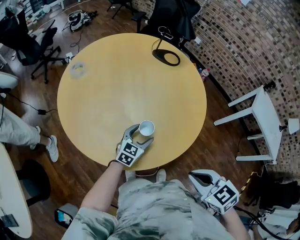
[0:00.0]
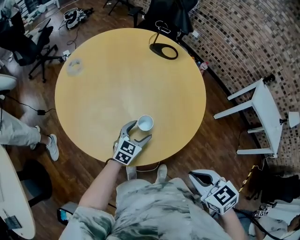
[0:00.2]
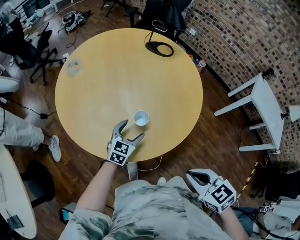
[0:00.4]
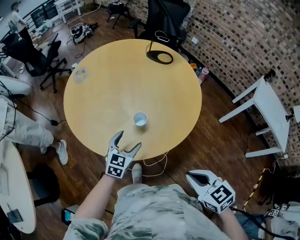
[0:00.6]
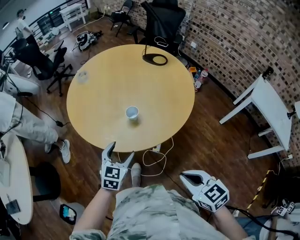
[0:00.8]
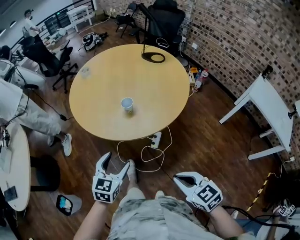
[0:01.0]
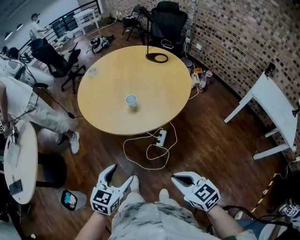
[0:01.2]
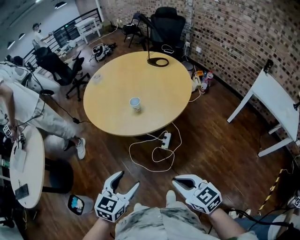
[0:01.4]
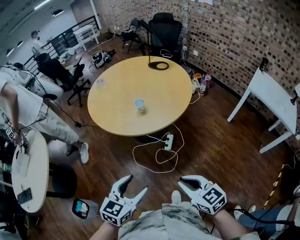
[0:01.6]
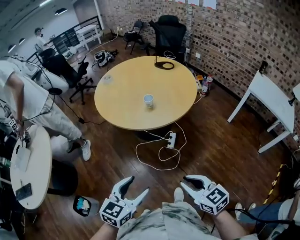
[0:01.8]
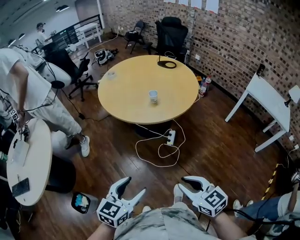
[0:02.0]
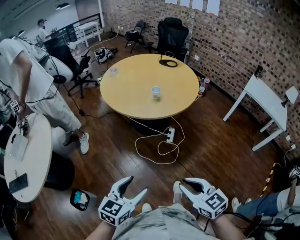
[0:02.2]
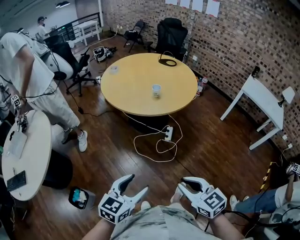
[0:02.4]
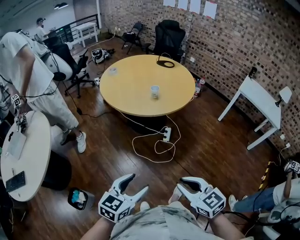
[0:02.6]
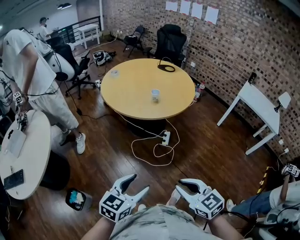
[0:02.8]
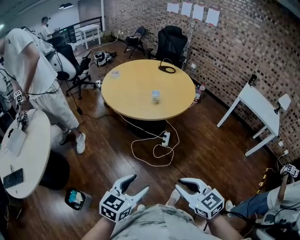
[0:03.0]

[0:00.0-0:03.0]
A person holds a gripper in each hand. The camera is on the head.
0:00.0 to 0:01.6: The left gripper goes approximately 60 cm backward and upward. Meanwhile the right gripper shifts about 35 cm backward, and rotates approximately 20 degrees.
0:01.6 to 0:03.0: The left gripper goes approximately 25 cm backward and upward. Meanwhile the right gripper shifts approximately 30 cm backward, upward and to the left.

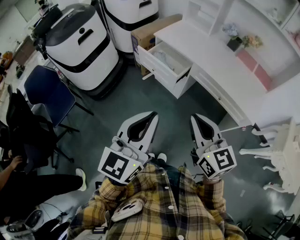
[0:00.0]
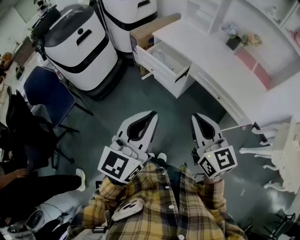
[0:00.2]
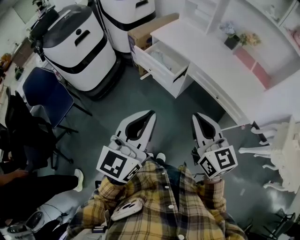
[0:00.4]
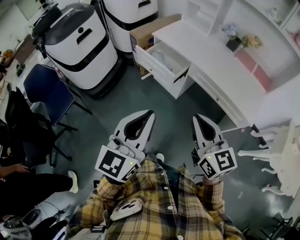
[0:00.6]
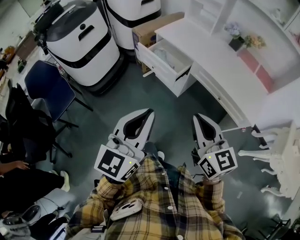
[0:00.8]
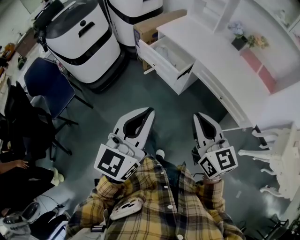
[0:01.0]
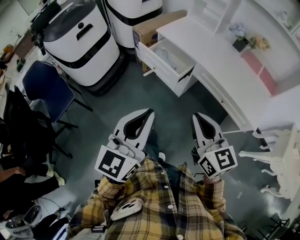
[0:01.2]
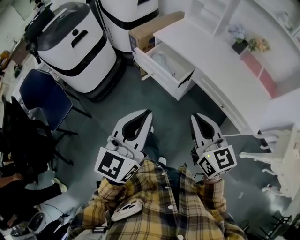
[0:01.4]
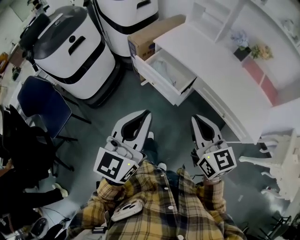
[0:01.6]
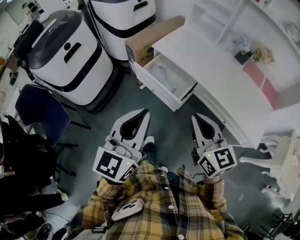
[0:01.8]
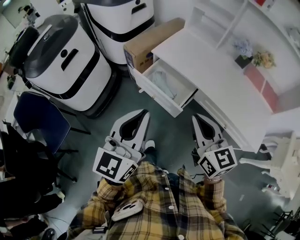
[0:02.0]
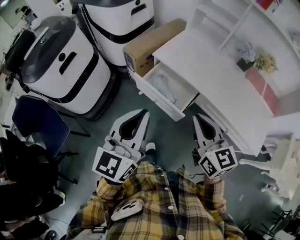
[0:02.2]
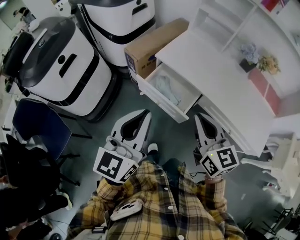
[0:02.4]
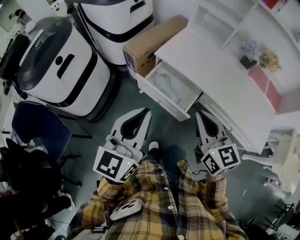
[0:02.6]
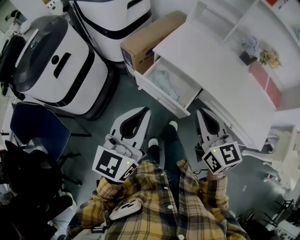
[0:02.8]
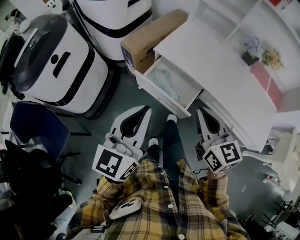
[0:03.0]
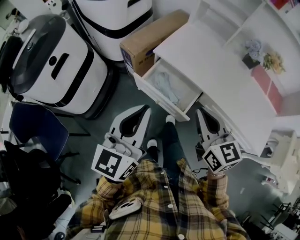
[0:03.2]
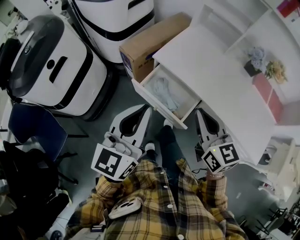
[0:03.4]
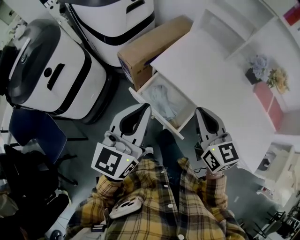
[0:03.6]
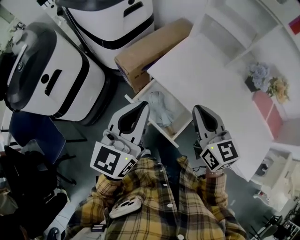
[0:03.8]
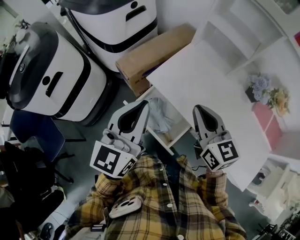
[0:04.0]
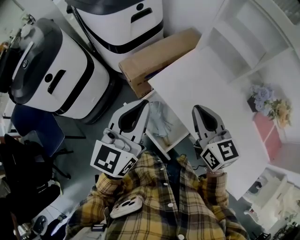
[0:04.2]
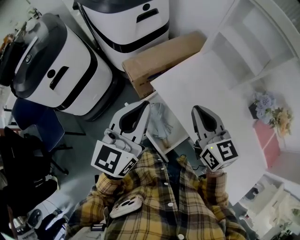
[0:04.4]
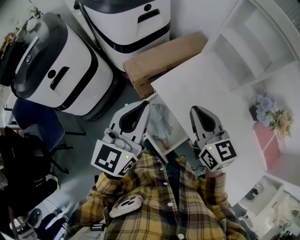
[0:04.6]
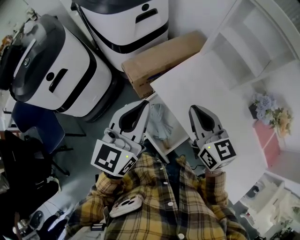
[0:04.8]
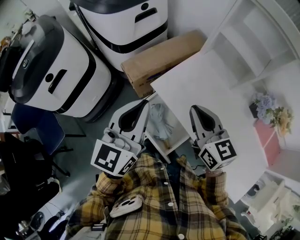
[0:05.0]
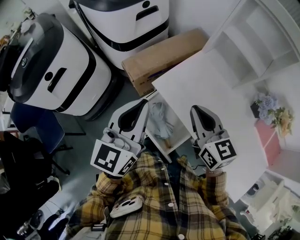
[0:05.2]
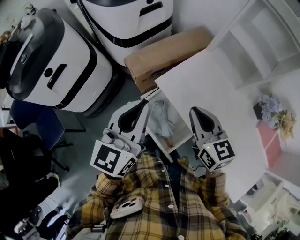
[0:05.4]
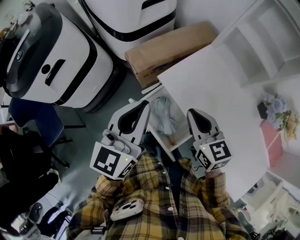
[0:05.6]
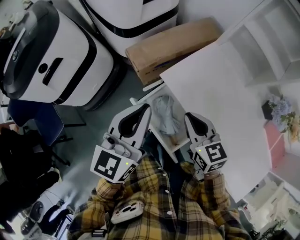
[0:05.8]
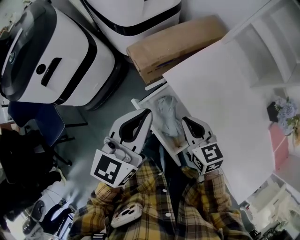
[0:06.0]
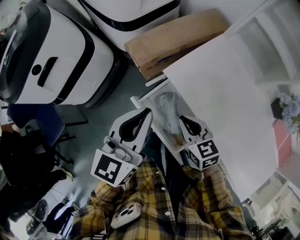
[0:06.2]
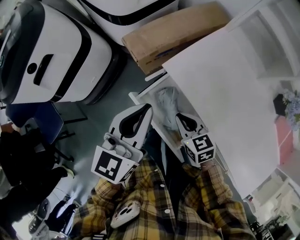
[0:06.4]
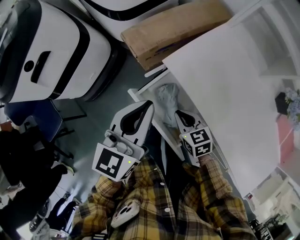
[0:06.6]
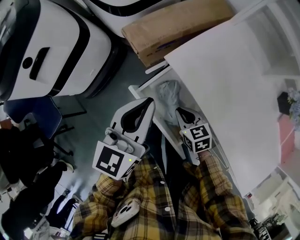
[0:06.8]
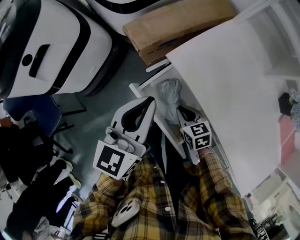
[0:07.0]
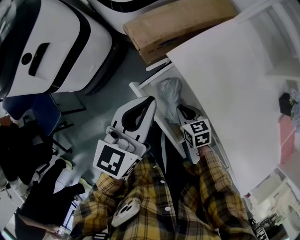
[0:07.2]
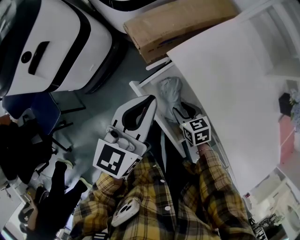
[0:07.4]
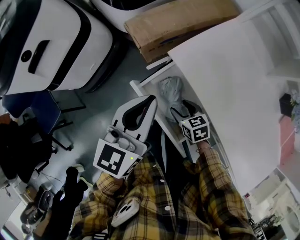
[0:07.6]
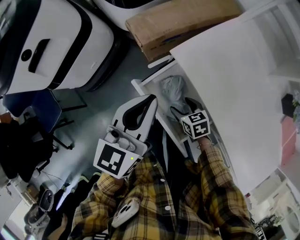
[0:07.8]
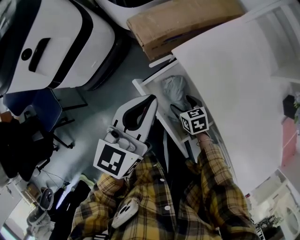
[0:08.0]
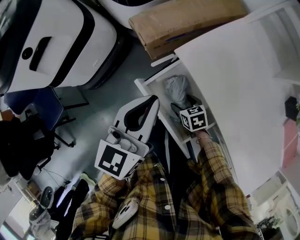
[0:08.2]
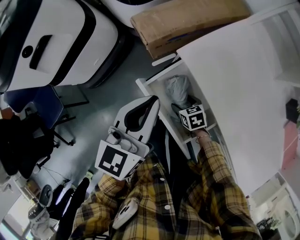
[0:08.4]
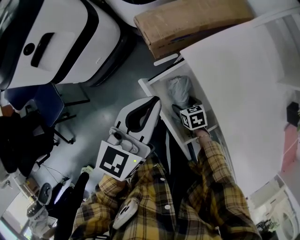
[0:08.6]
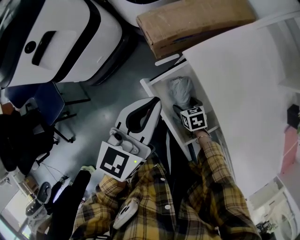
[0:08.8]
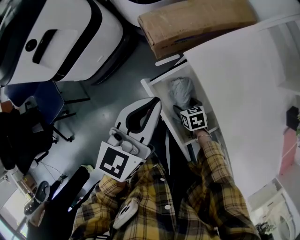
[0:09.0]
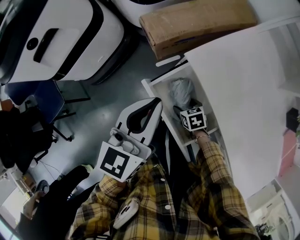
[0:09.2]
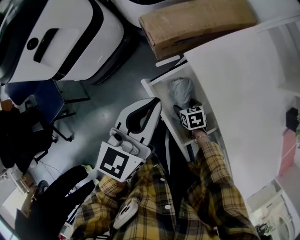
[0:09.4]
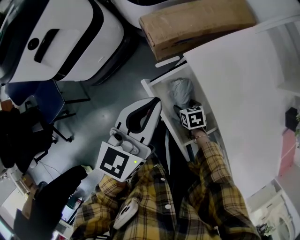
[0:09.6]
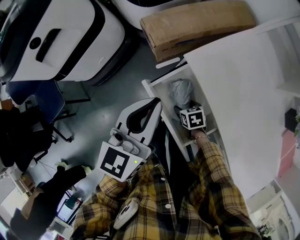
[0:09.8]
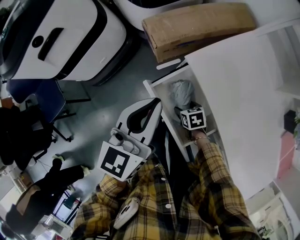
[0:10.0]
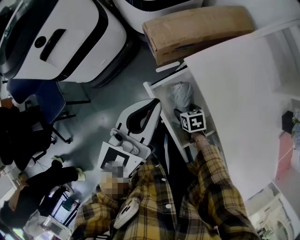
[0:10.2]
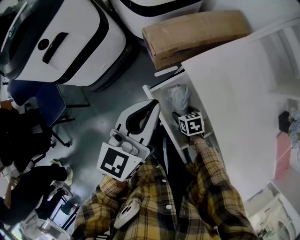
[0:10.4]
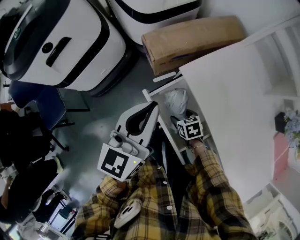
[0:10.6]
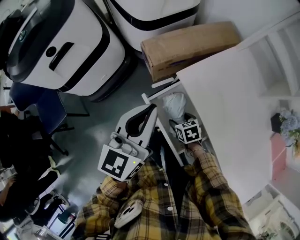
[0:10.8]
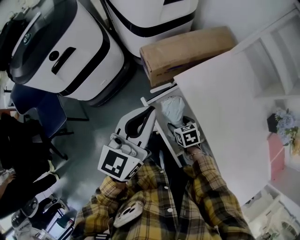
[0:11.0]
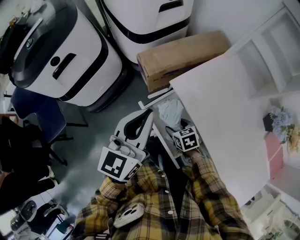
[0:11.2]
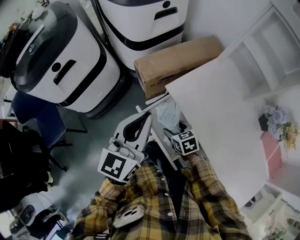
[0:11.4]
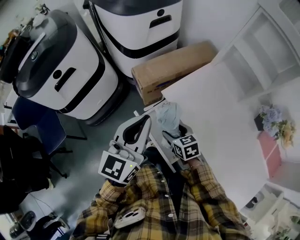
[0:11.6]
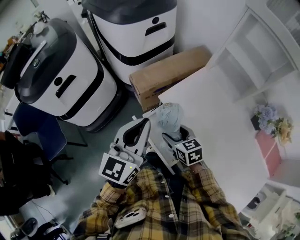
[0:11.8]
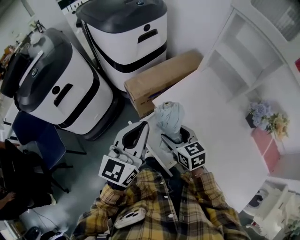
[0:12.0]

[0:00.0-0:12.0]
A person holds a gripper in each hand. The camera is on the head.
0:00.0 to 0:01.6: The two grippers go approximately 15 cm forward.
0:01.6 to 0:03.0: The two grippers go some 20 cm forward.
0:03.0 to 0:04.4: Both grippers travel together forward, some 25 cm.
0:04.4 to 0:06.0: The left gripper is displaced downward by some 10 cm. Meanwhile the right gripper is displaced downward and to the left by approximately 20 cm, and changes its angle by some 20 degrees.
0:06.0 to 0:07.6: The left gripper heads downward, covering roughly 5 cm, while the right gripper travels downward by approximately 20 cm, turns by roughly 20 degrees, and opens.
0:07.6 to 0:09.0: The right gripper moves downward, some 10 cm.
0:09.0 to 0:10.4: The grippers move only a little.
0:10.4 to 0:12.0: The left gripper heads upward, covering roughly 10 cm. Meanwhile the right gripper heads upward, covering about 30 cm, and tips its fingers upward by approximately 30 degrees.

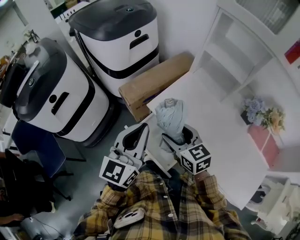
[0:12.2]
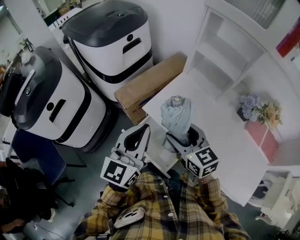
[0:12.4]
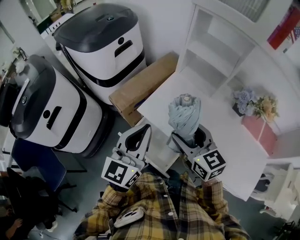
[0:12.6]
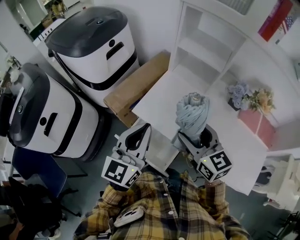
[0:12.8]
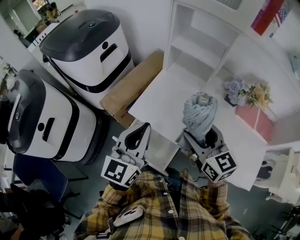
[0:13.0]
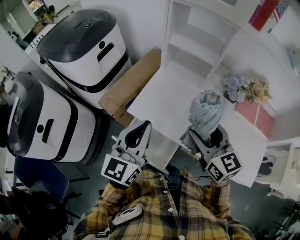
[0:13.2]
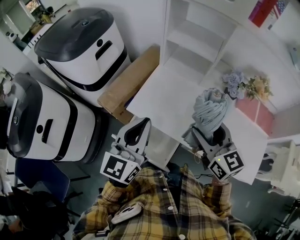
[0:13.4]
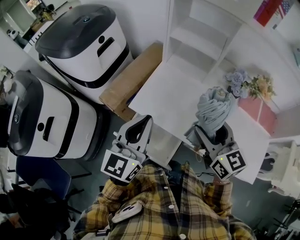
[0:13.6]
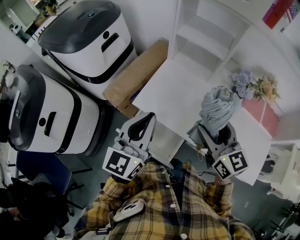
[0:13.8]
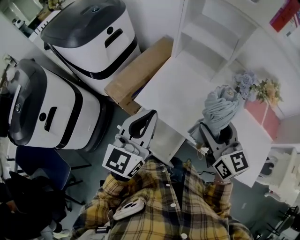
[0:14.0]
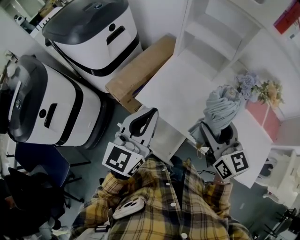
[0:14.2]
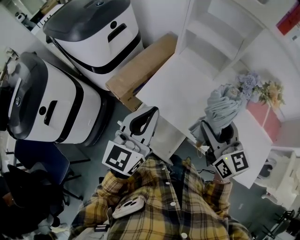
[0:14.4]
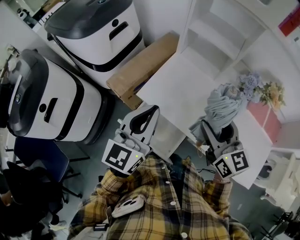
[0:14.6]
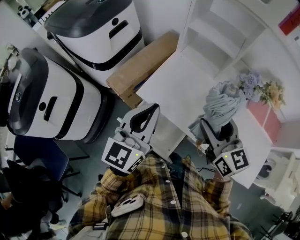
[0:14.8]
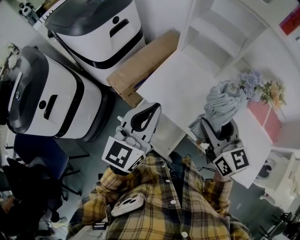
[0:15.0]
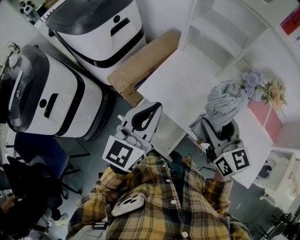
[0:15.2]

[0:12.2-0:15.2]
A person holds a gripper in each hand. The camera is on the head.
0:12.2 to 0:13.8: The left gripper travels to the right by roughly 10 cm. The right gripper travels to the right and upward by about 20 cm, and changes its angle by roughly 30 degrees.
0:13.8 to 0:15.2: Both grippers stay about where they are.

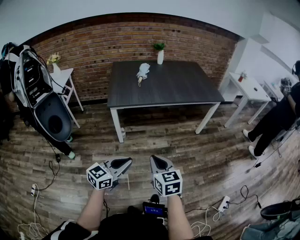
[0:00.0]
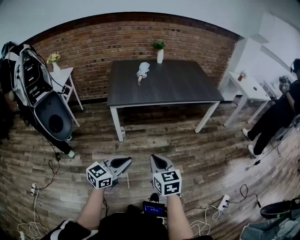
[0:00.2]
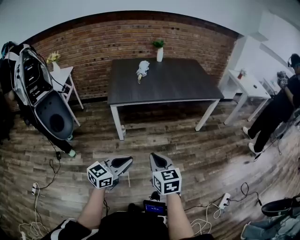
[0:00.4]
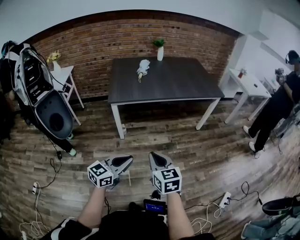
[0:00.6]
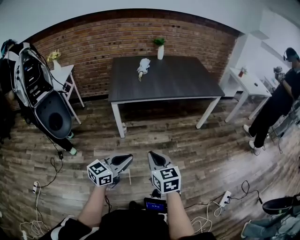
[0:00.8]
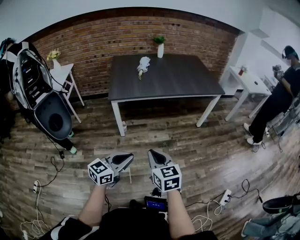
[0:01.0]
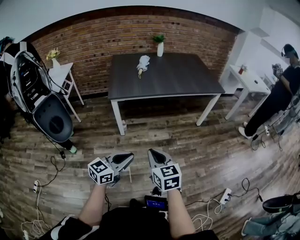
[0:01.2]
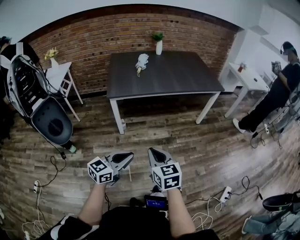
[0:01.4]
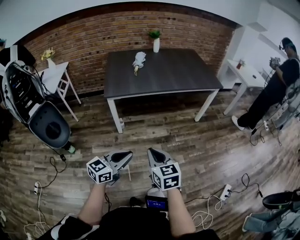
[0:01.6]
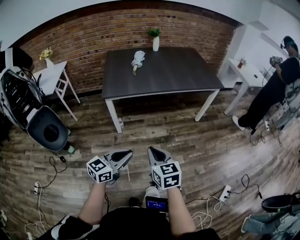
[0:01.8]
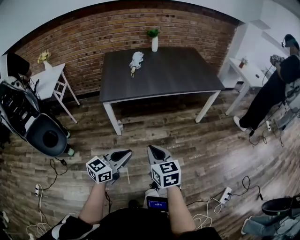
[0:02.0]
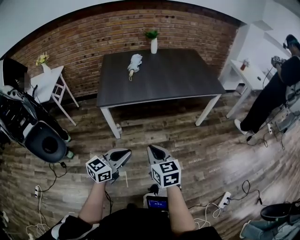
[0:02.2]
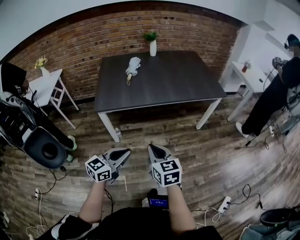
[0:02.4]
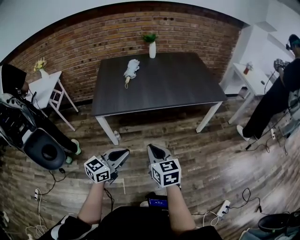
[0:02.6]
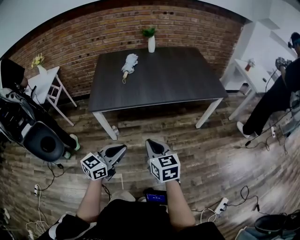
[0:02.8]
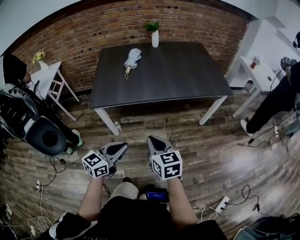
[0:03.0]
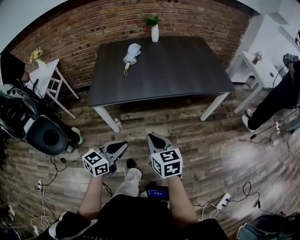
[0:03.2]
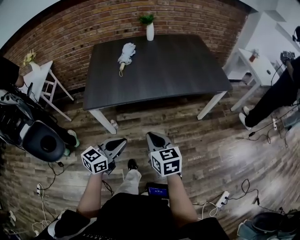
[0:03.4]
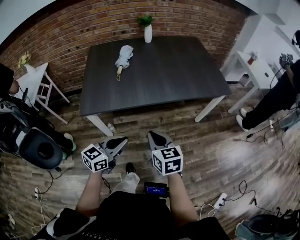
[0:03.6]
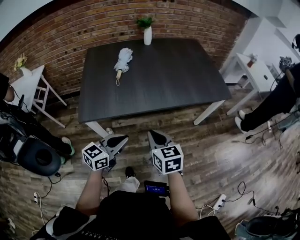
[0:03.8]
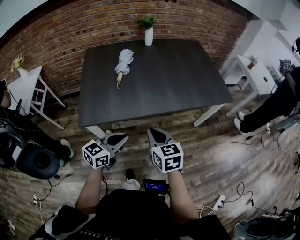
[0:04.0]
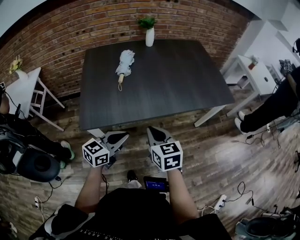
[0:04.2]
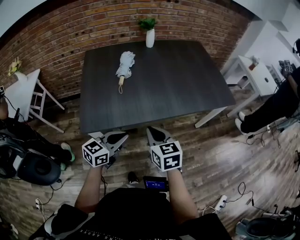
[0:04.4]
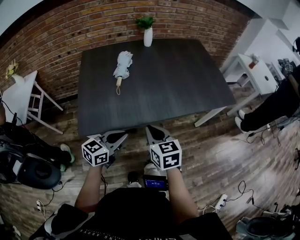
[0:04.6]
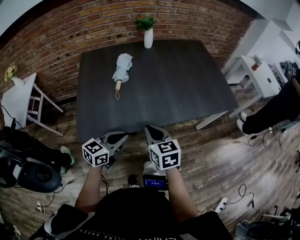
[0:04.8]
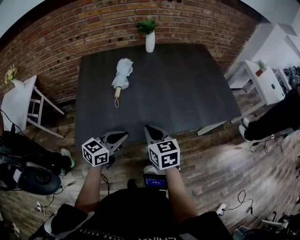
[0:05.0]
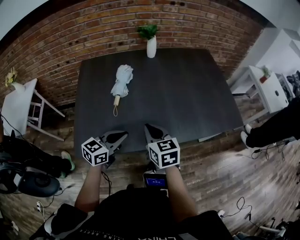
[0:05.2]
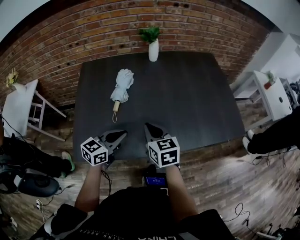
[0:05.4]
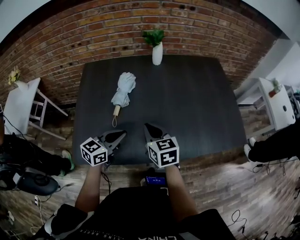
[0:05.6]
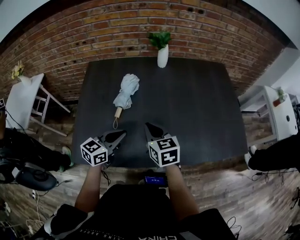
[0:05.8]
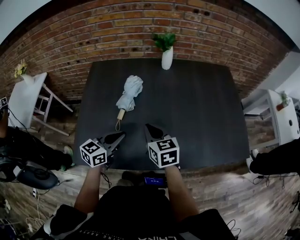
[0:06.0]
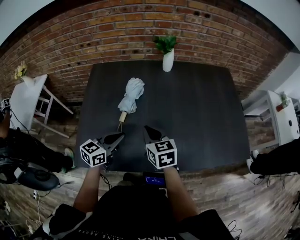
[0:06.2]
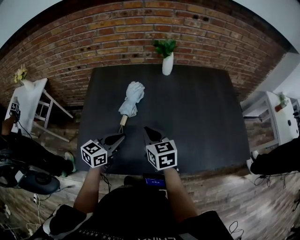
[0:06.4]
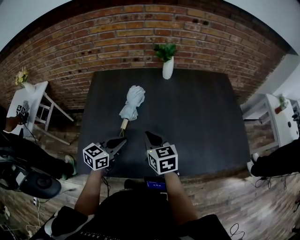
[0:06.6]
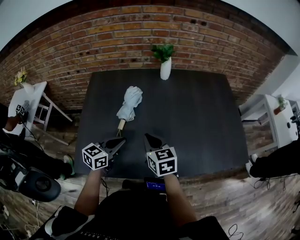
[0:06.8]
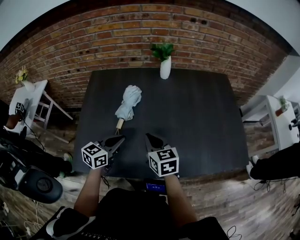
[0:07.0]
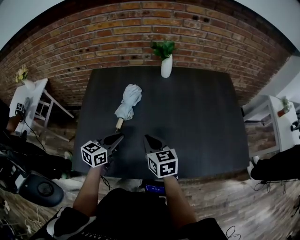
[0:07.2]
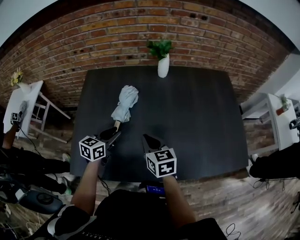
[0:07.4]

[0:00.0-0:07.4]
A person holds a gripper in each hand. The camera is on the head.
0:00.0 to 0:01.4: There are only small adjustments of the grippers.
0:01.4 to 0:03.0: The grippers both shift forward by about 25 cm.
0:03.0 to 0:04.4: The grippers both shift forward and to the left by about 25 cm.
0:04.4 to 0:06.0: Both grippers travel together forward, about 30 cm.
0:06.0 to 0:07.4: The left gripper is displaced forward by some 10 cm.
